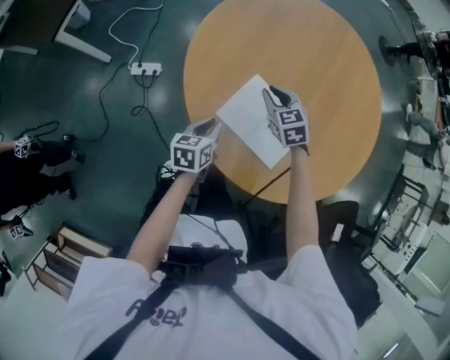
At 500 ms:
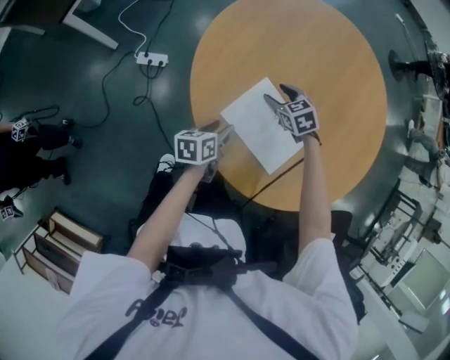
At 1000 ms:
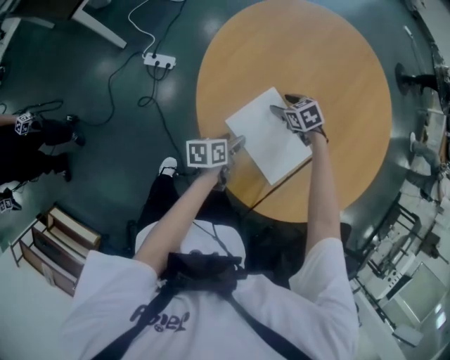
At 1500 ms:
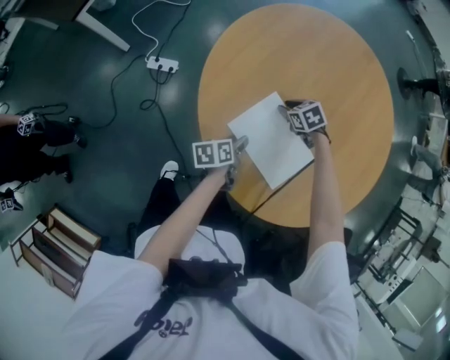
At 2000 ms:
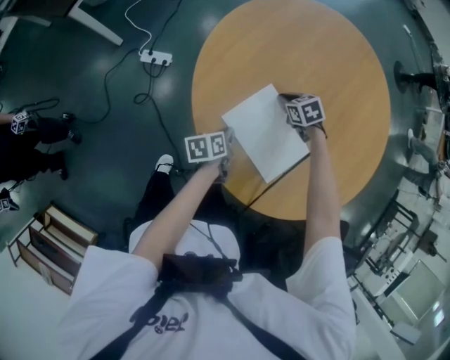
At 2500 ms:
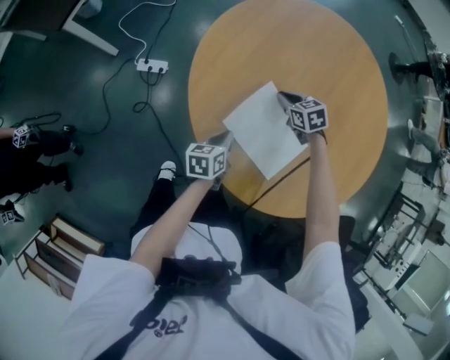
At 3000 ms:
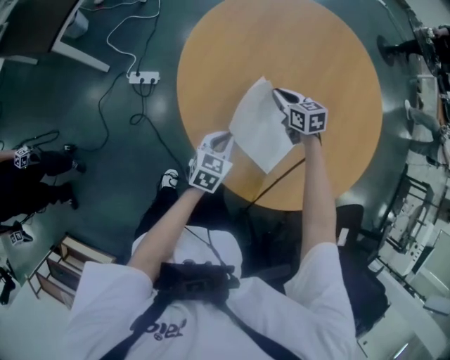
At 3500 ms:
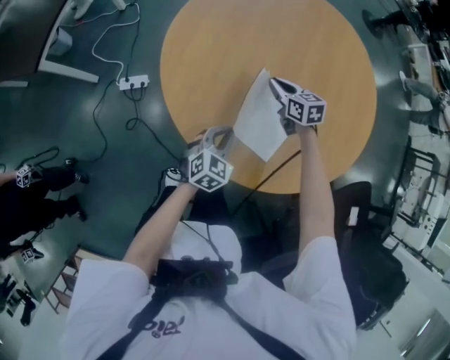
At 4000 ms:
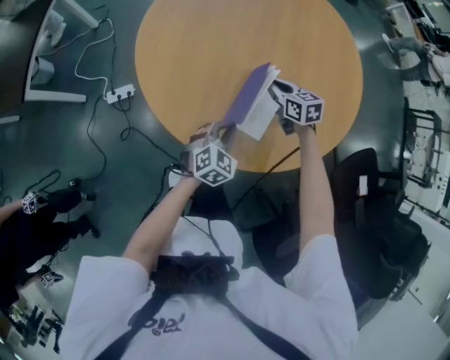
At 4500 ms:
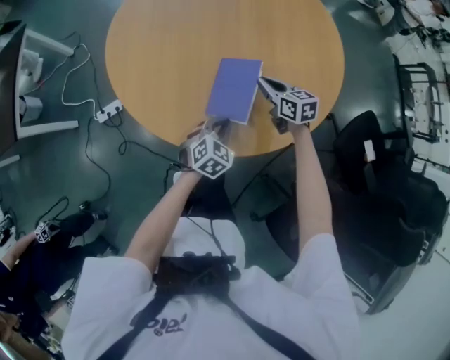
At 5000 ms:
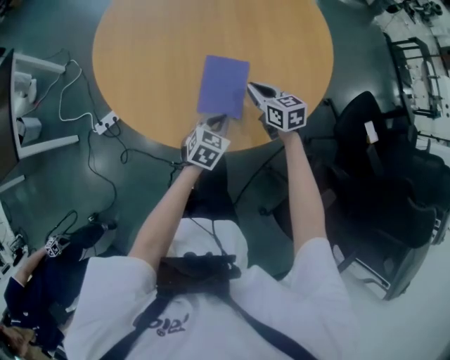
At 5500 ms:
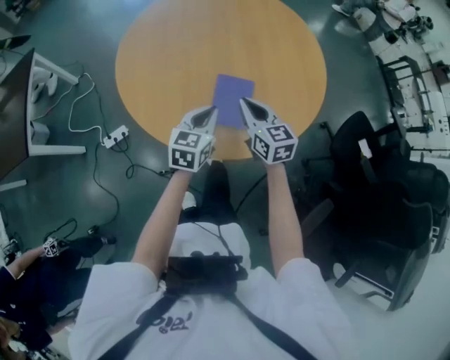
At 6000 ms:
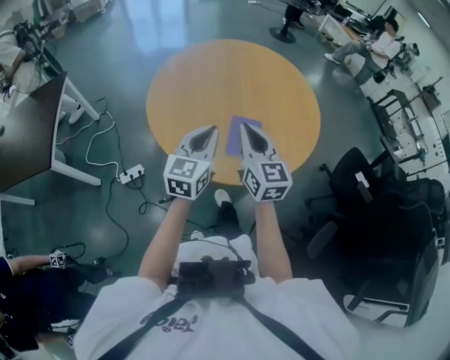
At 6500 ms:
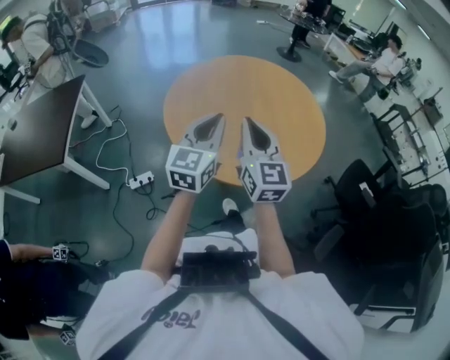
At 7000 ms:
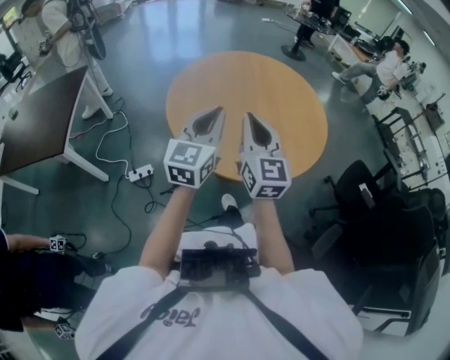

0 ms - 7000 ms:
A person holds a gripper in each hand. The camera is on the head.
0 ms - 2000 ms: Both grippers move downward, some 10 cm. The right gripper turns by roughly 30 degrees, and opens, then closes once more; the left gripper turns by about 30 degrees, and opens, then closes again.
2000 ms - 3500 ms: The left gripper shifts roughly 10 cm upward and to the right, and twists about 80 degrees clockwise, seen from behind; the right gripper goes some 5 cm upward, and rotates some 40 degrees.
3500 ms - 5000 ms: The right gripper heads backward and to the right, covering roughly 20 cm, and swivels roughly 20 degrees. Meanwhile the left gripper goes about 10 cm to the right, and rotates approximately 20 degrees.
5000 ms - 7000 ms: The left gripper is displaced upward and to the left by approximately 40 cm, and tips its fingers upward by some 50 degrees. The right gripper shifts approximately 40 cm upward, to the left and backward, and tilts its fingers about 40 degrees upward.

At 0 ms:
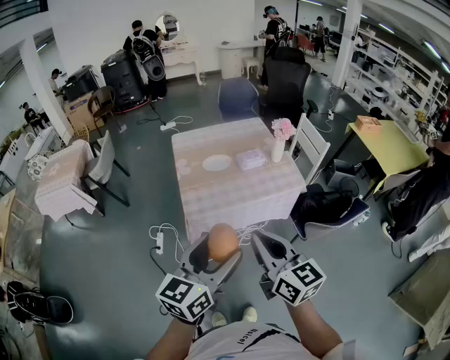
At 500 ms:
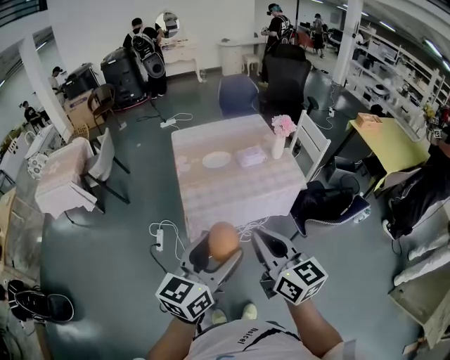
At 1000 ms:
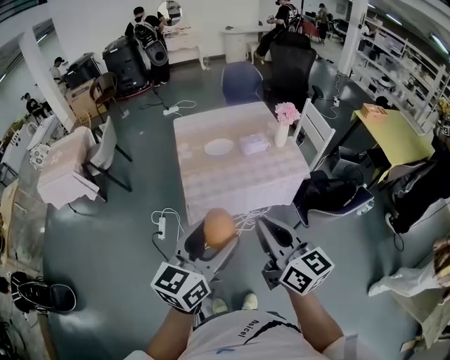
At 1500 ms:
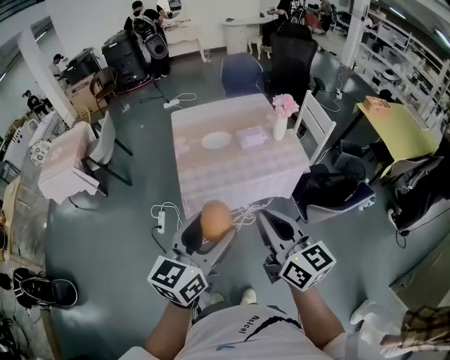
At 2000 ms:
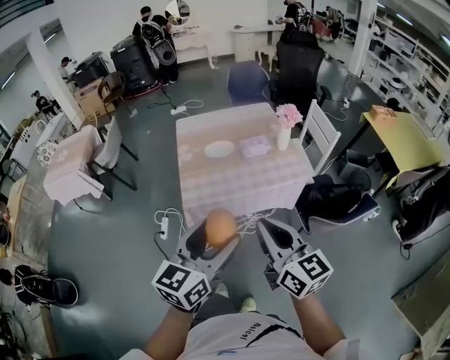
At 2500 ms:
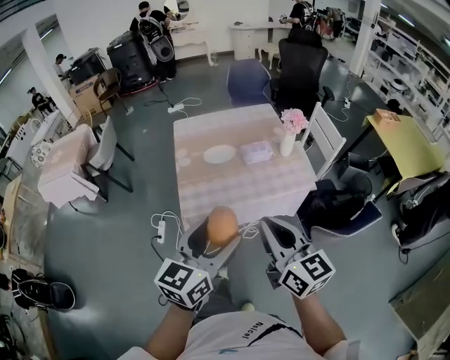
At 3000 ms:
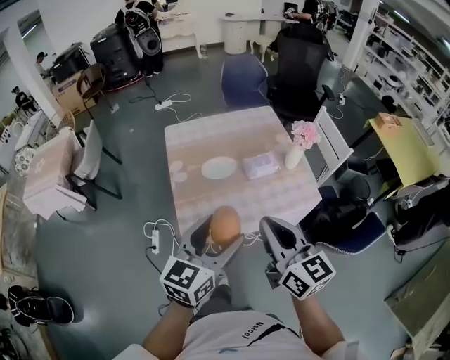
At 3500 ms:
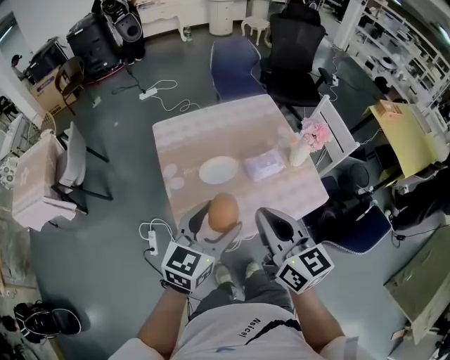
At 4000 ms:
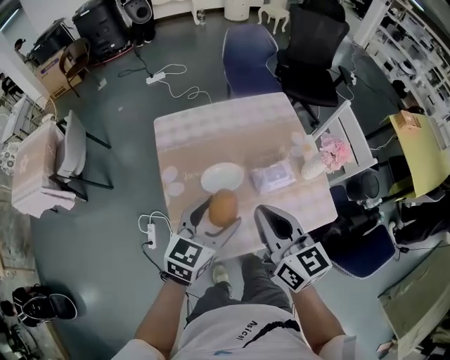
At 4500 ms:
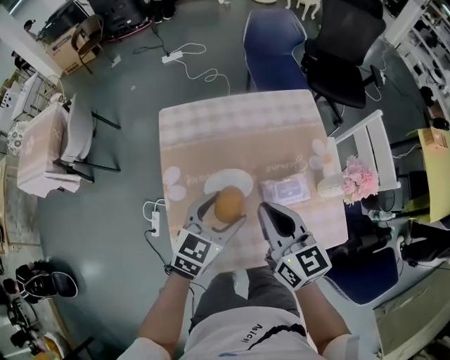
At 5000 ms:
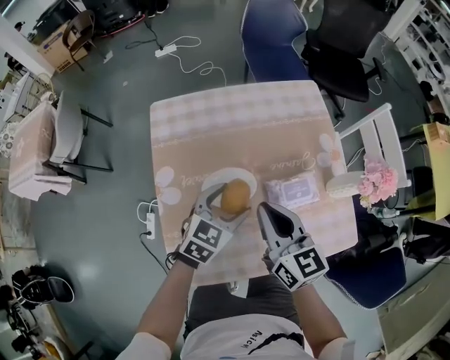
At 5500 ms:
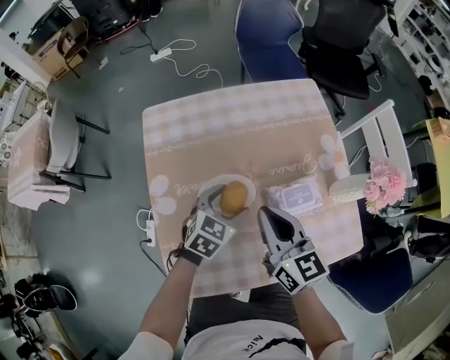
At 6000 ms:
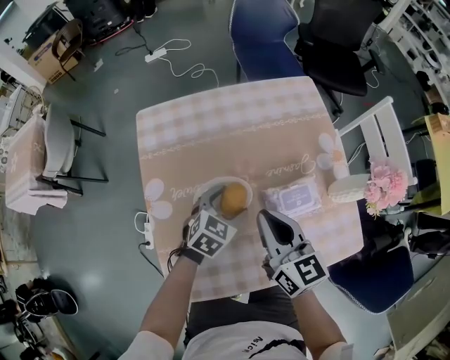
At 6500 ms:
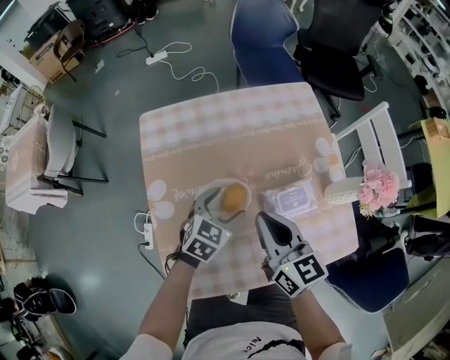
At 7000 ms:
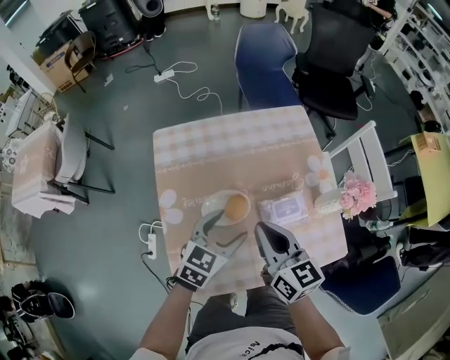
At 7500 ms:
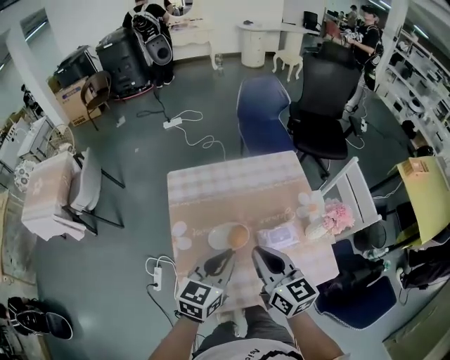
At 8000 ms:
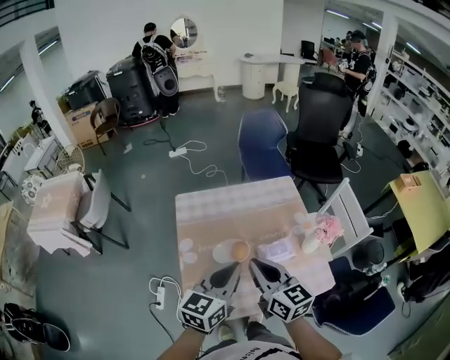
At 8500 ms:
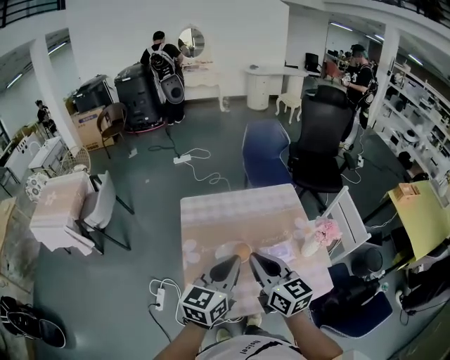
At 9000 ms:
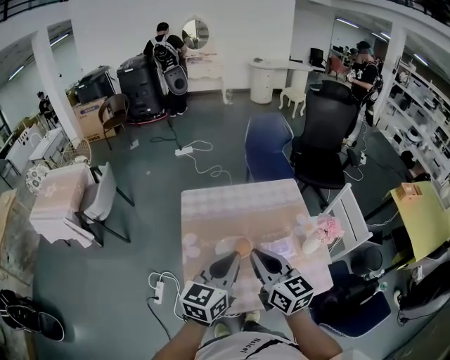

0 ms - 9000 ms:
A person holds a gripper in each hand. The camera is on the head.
0 ms - 2000 ms: The right gripper heads to the right, covering some 5 cm. The left gripper changes place by roughly 5 cm.
2000 ms - 4500 ms: The pair of grippers is taken forward, about 50 cm. The left gripper heads downward, covering approximately 20 cm, and changes its angle by approximately 20 degrees.
4500 ms - 7000 ms: The left gripper moves some 20 cm downward and comes back.
7000 ms - 9000 ms: The left gripper travels upward by about 20 cm, rotates some 30 degrees, and closes its fingers; the right gripper shifts about 15 cm upward and backward.

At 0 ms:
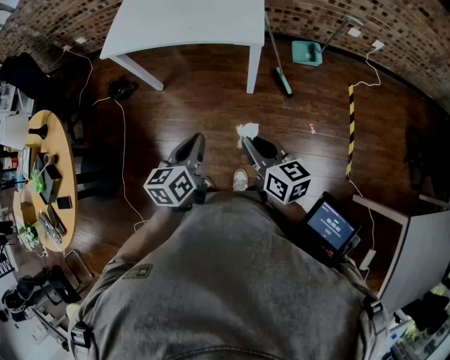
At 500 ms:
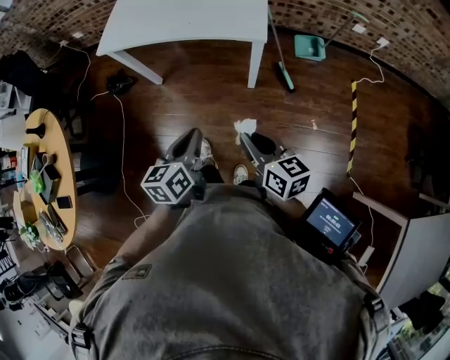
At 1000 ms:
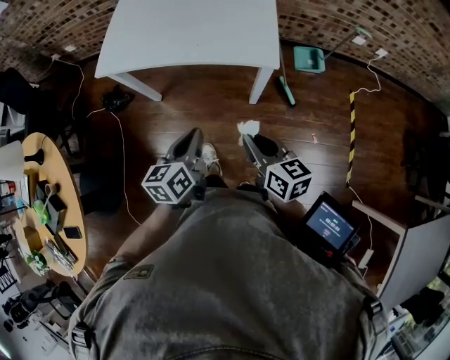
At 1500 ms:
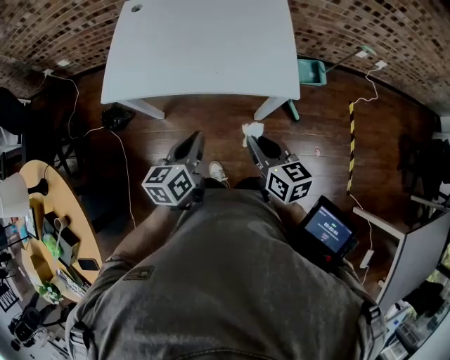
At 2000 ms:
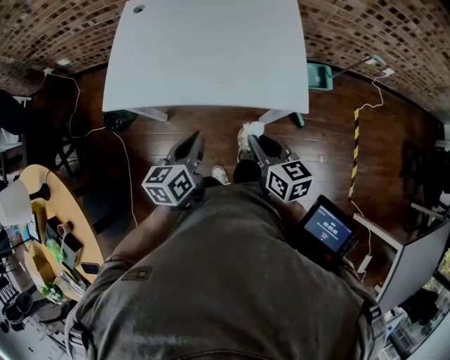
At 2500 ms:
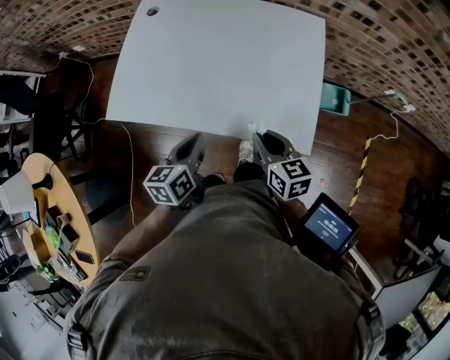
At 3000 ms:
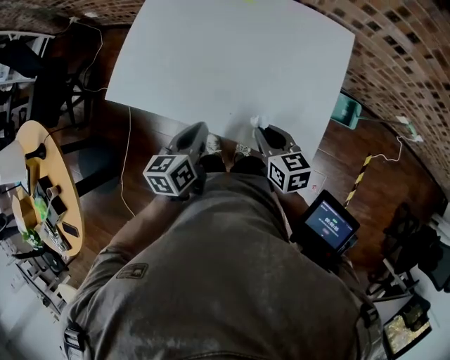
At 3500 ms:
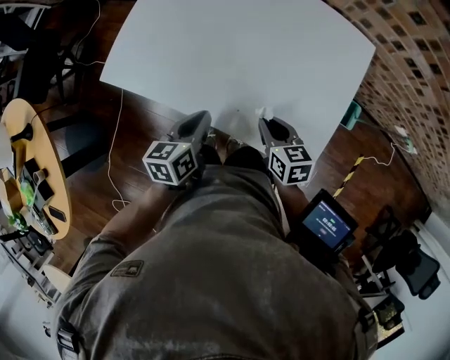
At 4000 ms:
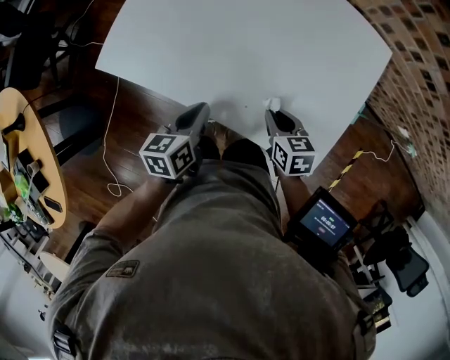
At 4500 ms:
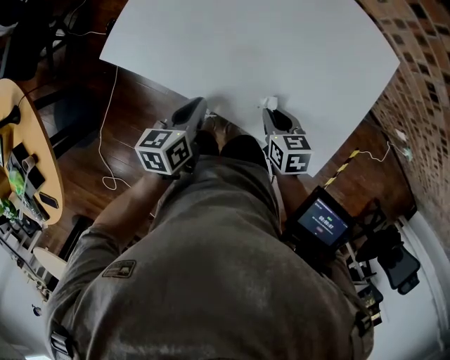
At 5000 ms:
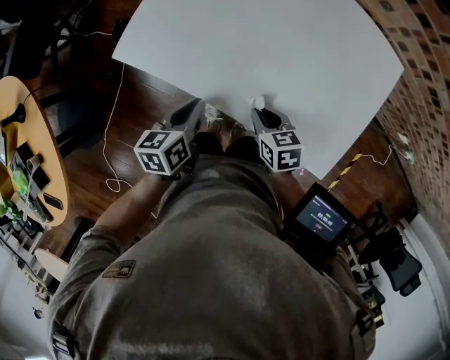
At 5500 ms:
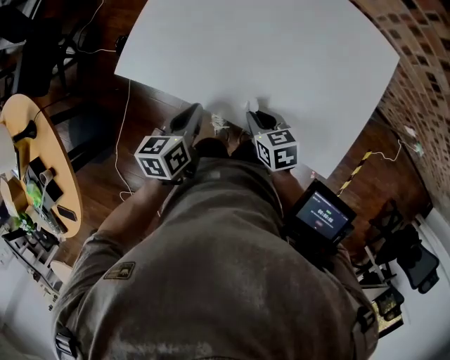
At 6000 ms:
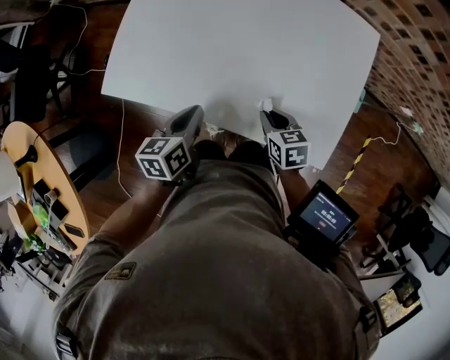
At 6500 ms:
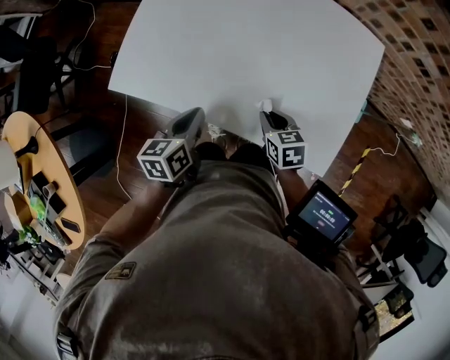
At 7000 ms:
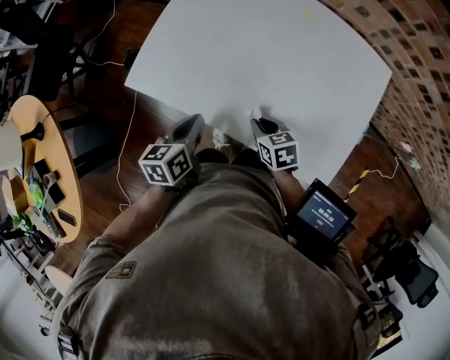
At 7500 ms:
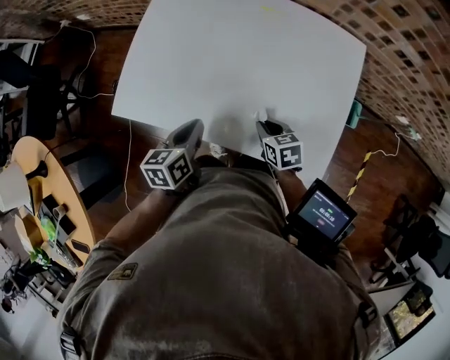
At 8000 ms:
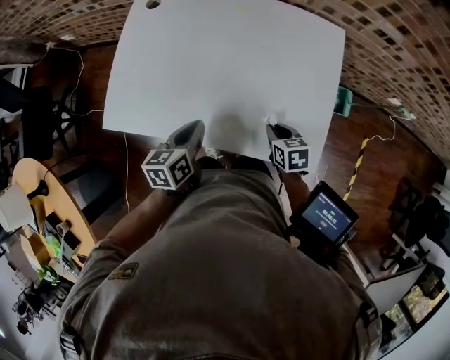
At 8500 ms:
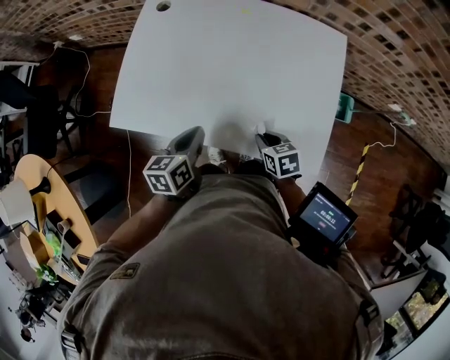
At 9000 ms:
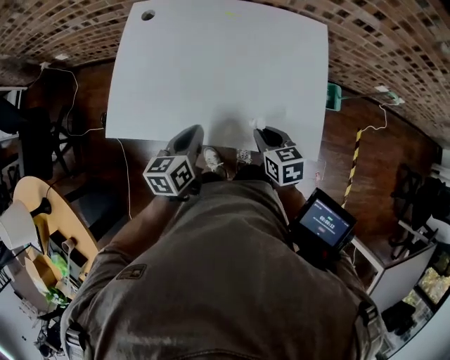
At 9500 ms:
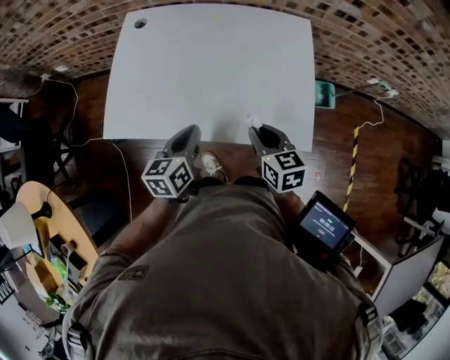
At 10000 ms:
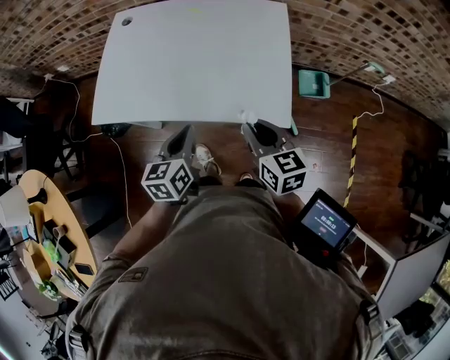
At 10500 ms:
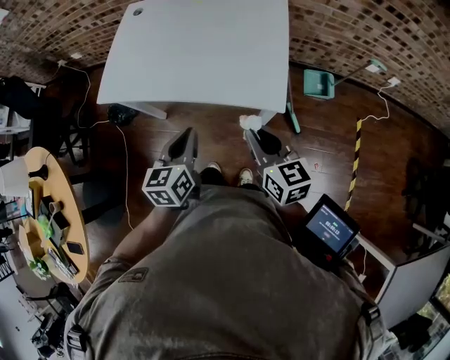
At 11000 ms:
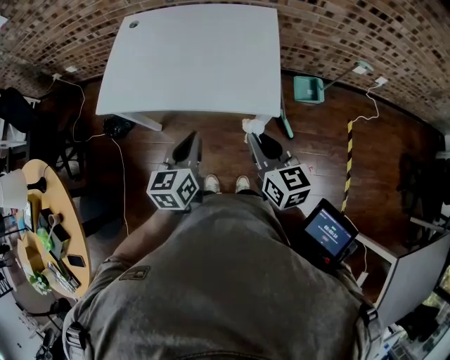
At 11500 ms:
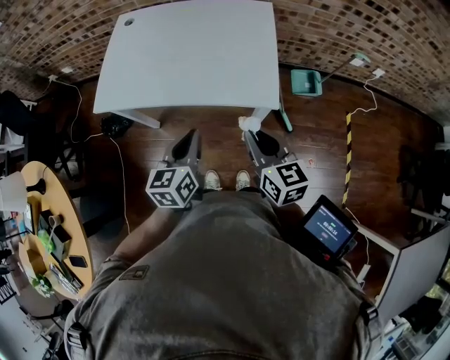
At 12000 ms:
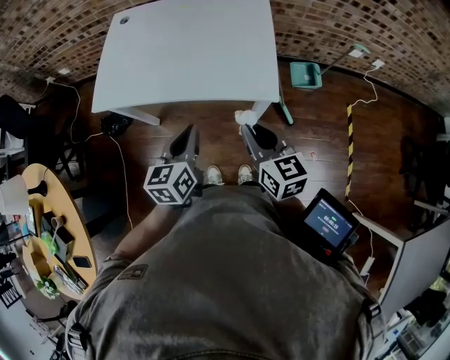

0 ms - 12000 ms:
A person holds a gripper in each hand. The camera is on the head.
0 ms - 2000 ms: The two grippers go roughly 35 cm forward.
2000 ms - 4000 ms: The two grippers go some 20 cm forward and downward. The right gripper turns by some 30 degrees; the left gripper turns by roughly 20 degrees.
4000 ms - 6000 ms: The left gripper reaches about 10 cm to the left, then returns. The right gripper travels to the left and back again, about 10 cm each way.
6000 ms - 8000 ms: The right gripper goes approximately 5 cm to the right. Meanwhile the left gripper moves roughly 5 cm.
8000 ms - 10000 ms: The left gripper goes about 15 cm backward, to the right and upward; the right gripper moves upward and backward, about 25 cm, and tilts its fingers approximately 30 degrees upward.
10000 ms - 12000 ms: The two grippers go about 10 cm backward.
